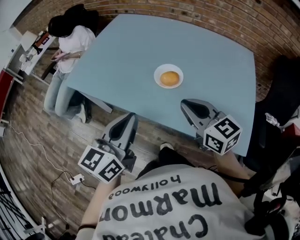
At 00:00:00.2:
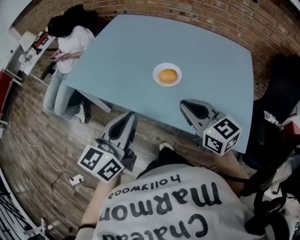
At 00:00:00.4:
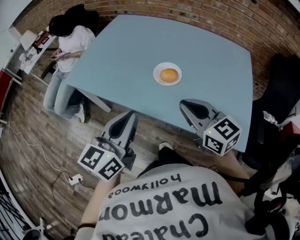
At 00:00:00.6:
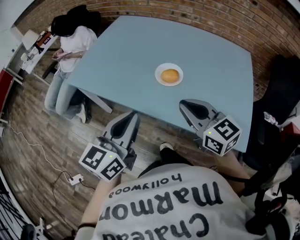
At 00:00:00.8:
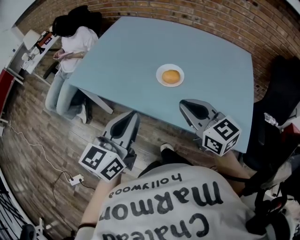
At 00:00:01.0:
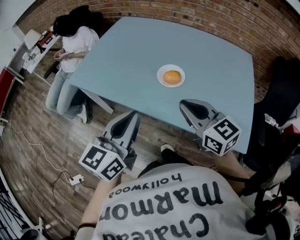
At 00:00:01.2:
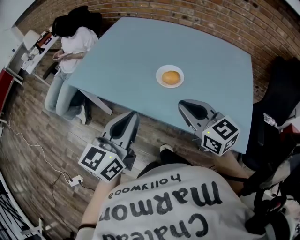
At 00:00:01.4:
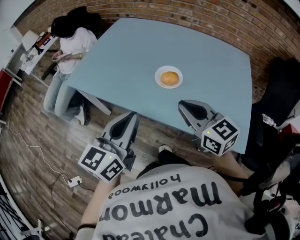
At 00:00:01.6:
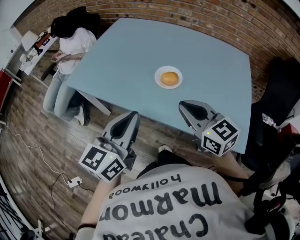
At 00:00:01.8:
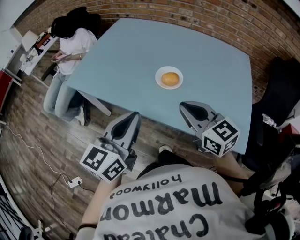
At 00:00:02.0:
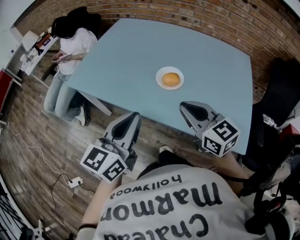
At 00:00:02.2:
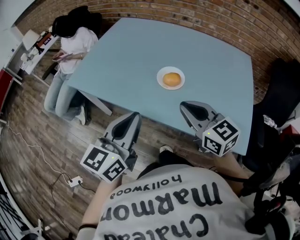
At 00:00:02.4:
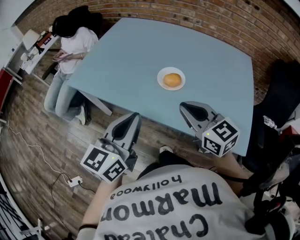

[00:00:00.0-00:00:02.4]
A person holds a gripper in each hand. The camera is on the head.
00:00:00.0 to 00:00:01.2: There are only small adjustments of the grippers.
00:00:01.2 to 00:00:02.4: The two grippers keep their place.

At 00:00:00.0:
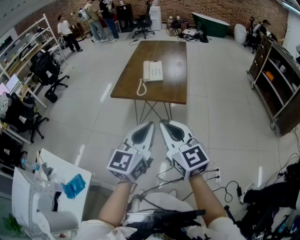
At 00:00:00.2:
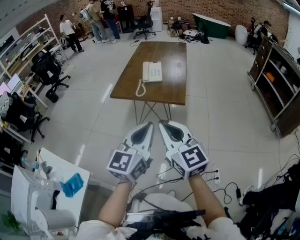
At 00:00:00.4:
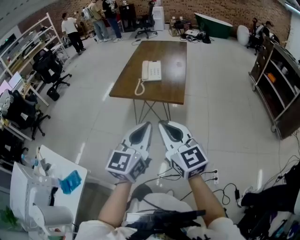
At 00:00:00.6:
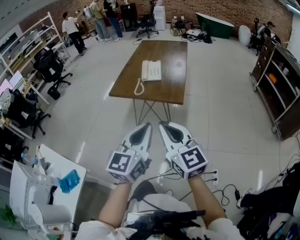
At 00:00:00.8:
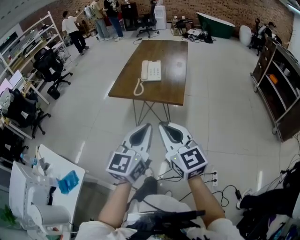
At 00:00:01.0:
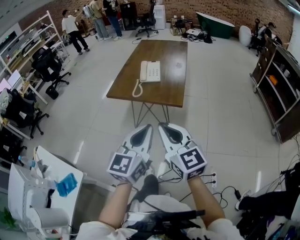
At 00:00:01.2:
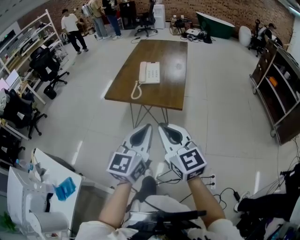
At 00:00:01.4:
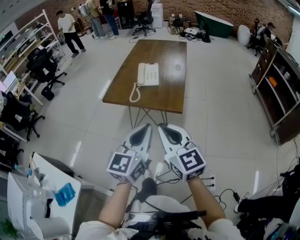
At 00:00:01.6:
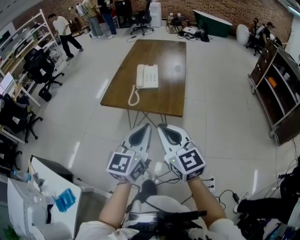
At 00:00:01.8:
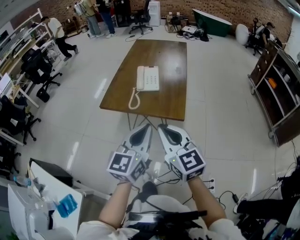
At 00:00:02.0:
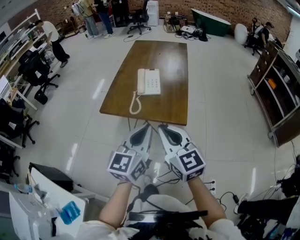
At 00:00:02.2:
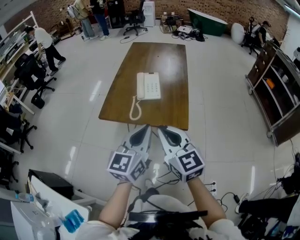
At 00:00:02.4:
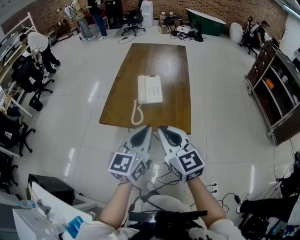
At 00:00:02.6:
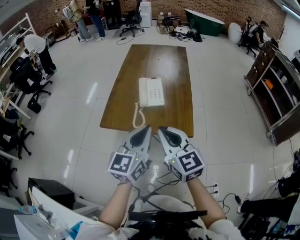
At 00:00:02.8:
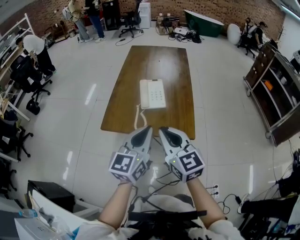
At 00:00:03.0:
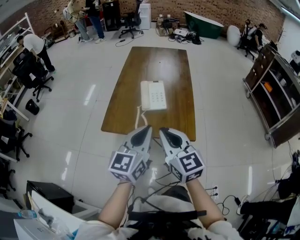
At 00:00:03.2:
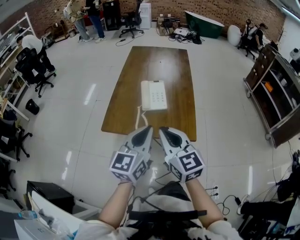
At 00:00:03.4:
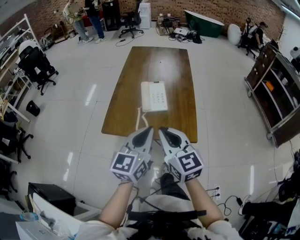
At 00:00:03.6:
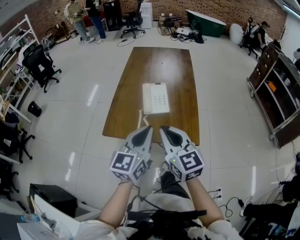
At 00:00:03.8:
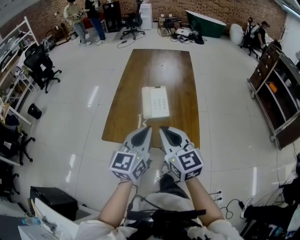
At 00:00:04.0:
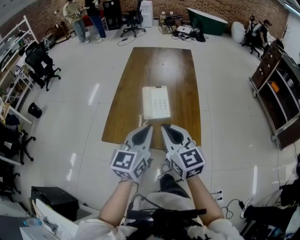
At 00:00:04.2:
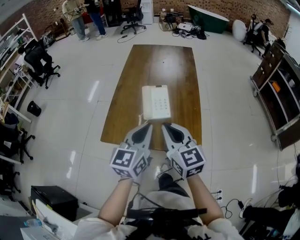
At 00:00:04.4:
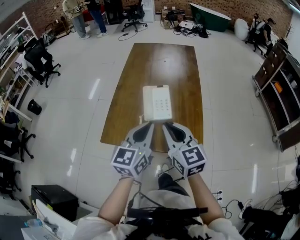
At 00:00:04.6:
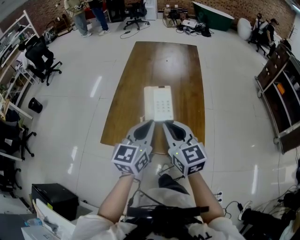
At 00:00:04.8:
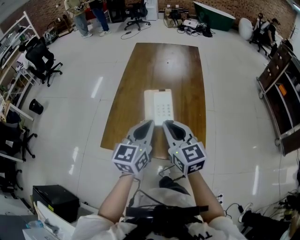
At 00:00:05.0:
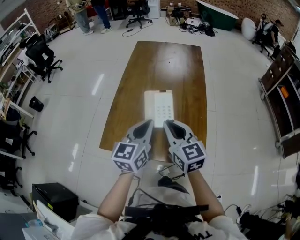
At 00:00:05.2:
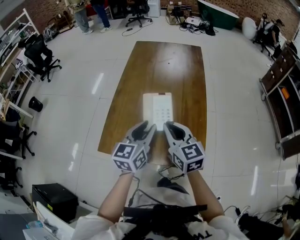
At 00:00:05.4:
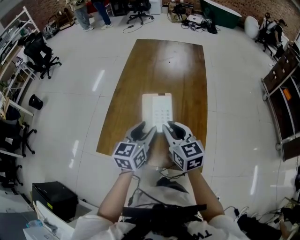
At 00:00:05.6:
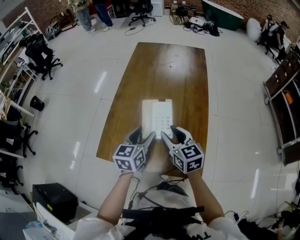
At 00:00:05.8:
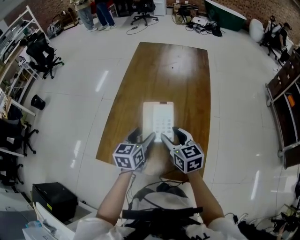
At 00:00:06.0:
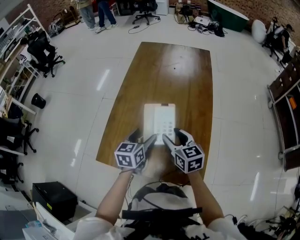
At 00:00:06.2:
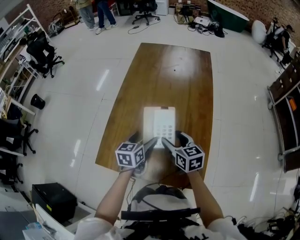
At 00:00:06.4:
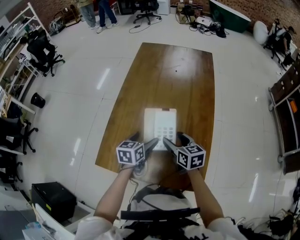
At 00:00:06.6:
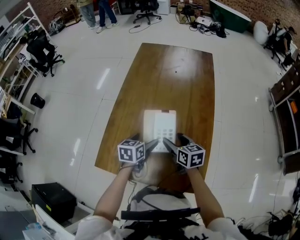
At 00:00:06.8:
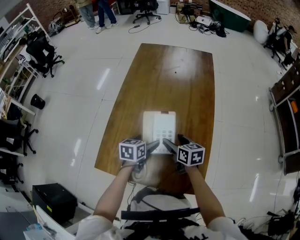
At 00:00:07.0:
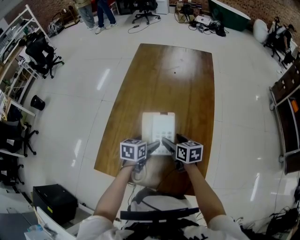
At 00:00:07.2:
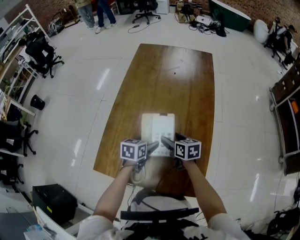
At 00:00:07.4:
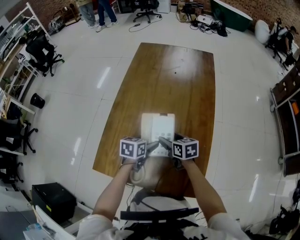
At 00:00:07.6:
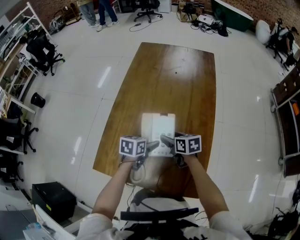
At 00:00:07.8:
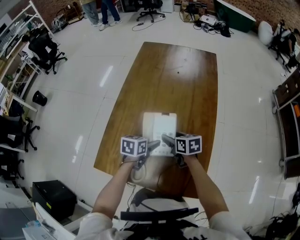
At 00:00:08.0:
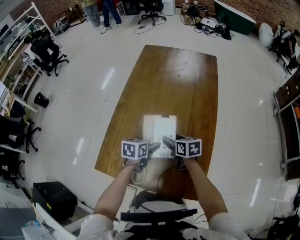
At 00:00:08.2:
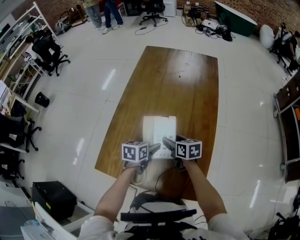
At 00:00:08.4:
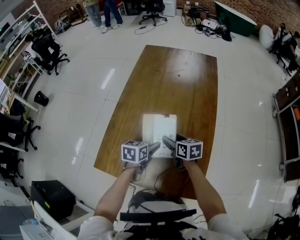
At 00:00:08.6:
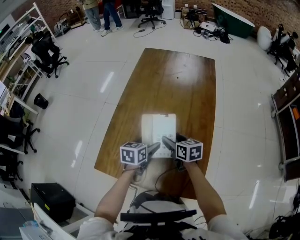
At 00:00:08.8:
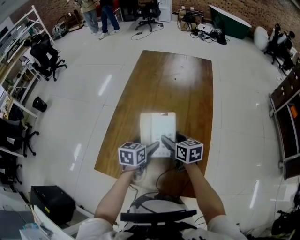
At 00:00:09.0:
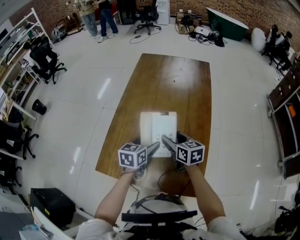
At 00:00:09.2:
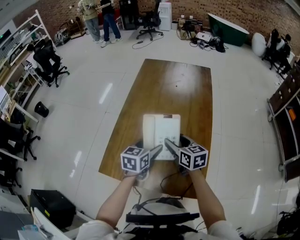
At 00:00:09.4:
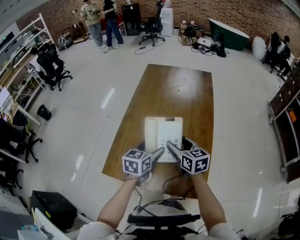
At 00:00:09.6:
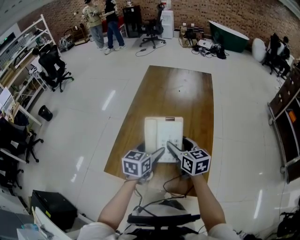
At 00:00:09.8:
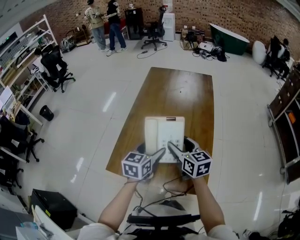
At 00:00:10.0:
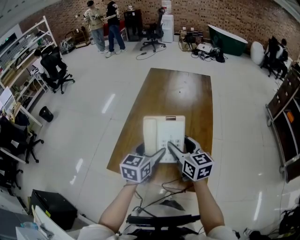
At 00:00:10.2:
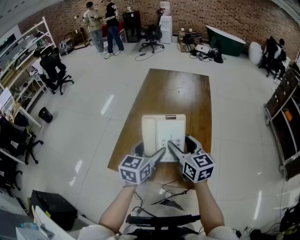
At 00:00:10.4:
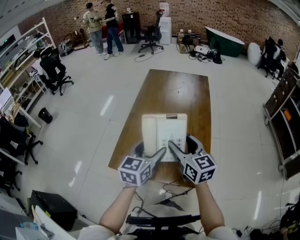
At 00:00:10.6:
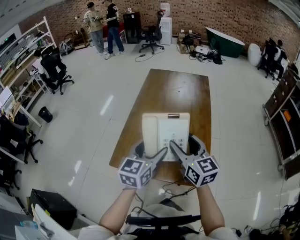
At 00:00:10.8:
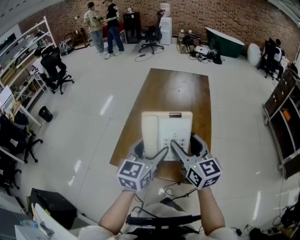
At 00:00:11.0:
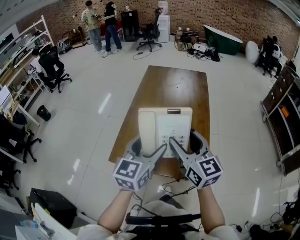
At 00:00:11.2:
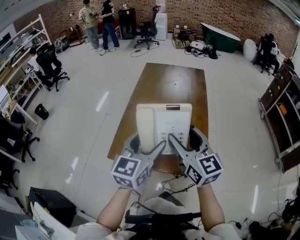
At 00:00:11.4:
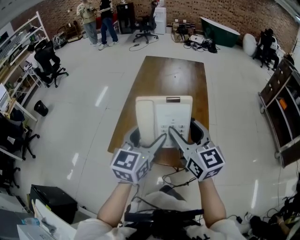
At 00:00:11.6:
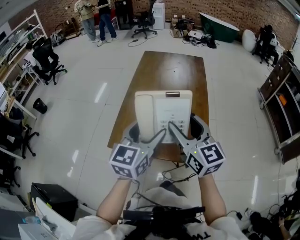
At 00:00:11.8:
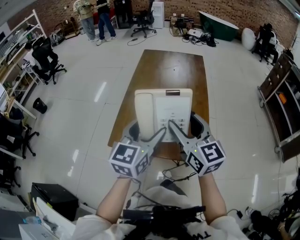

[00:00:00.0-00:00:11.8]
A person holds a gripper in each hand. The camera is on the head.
00:00:00.0 to 00:00:01.4: Both grippers move forward, some 10 cm.
00:00:01.4 to 00:00:03.0: The grippers both shift forward by some 20 cm.
00:00:03.0 to 00:00:04.4: The two grippers go some 10 cm forward.
00:00:04.4 to 00:00:06.0: The two grippers go some 20 cm forward and downward. The left gripper changes its angle by about 20 degrees, and opens up; the right gripper opens.
00:00:06.0 to 00:00:07.4: The left gripper is displaced downward by about 10 cm, and swivels approximately 20 degrees. Meanwhile the right gripper shifts approximately 10 cm downward and forward, and changes its angle by roughly 20 degrees.
00:00:07.4 to 00:00:08.8: Both grippers travel together upward, about 5 cm.
00:00:08.8 to 00:00:10.4: Both grippers travel together upward and backward, roughly 20 cm. The left gripper changes its angle by roughly 20 degrees; the right gripper swivels about 30 degrees.
00:00:10.4 to 00:00:11.8: Both grippers travel together backward and upward, approximately 10 cm.

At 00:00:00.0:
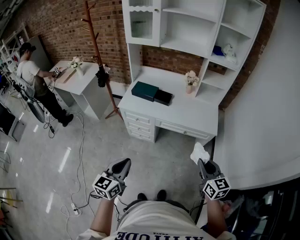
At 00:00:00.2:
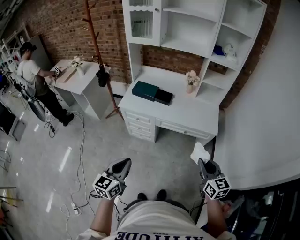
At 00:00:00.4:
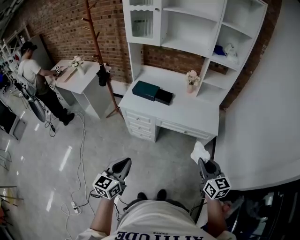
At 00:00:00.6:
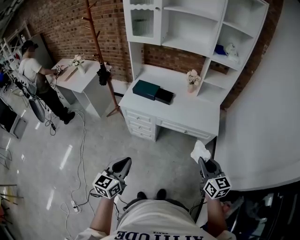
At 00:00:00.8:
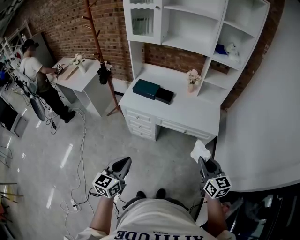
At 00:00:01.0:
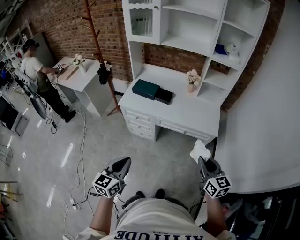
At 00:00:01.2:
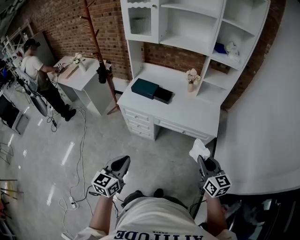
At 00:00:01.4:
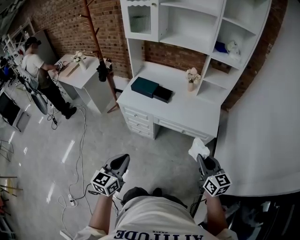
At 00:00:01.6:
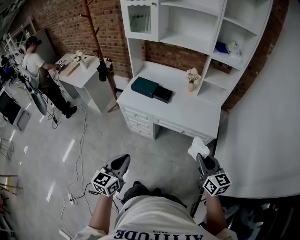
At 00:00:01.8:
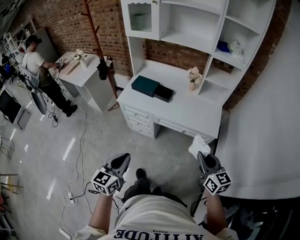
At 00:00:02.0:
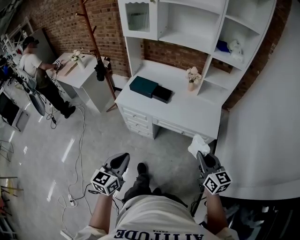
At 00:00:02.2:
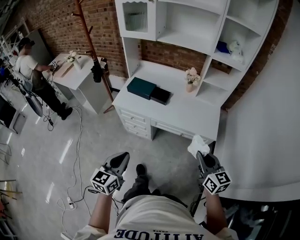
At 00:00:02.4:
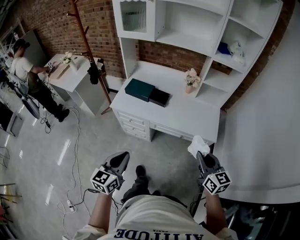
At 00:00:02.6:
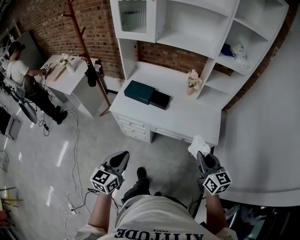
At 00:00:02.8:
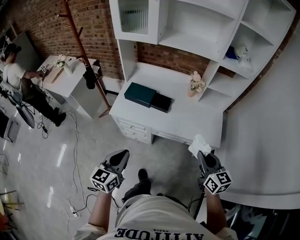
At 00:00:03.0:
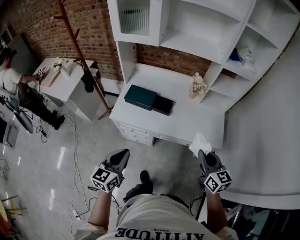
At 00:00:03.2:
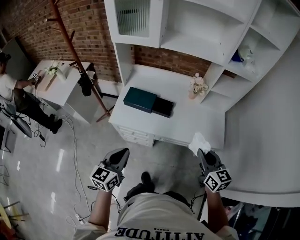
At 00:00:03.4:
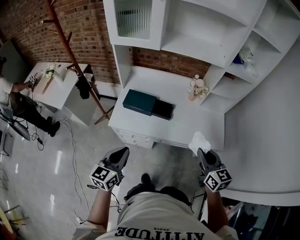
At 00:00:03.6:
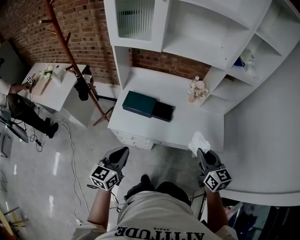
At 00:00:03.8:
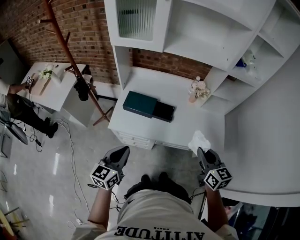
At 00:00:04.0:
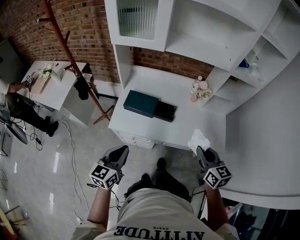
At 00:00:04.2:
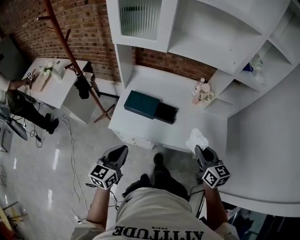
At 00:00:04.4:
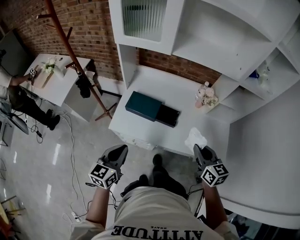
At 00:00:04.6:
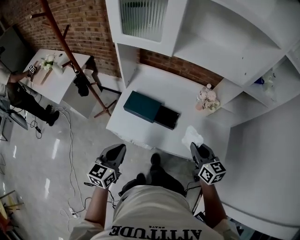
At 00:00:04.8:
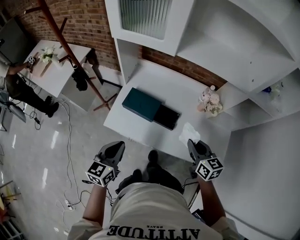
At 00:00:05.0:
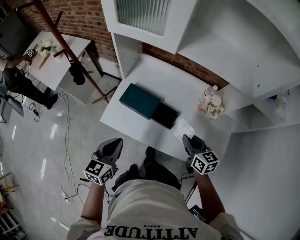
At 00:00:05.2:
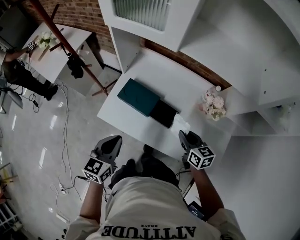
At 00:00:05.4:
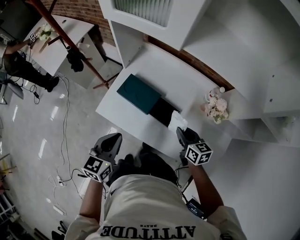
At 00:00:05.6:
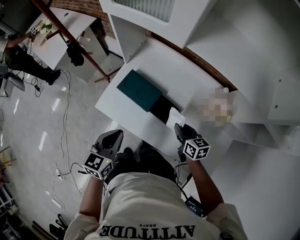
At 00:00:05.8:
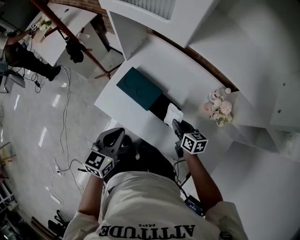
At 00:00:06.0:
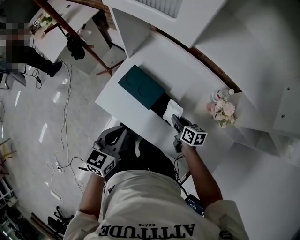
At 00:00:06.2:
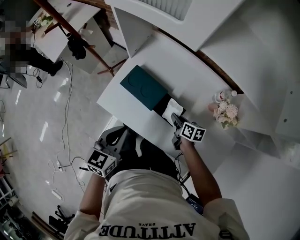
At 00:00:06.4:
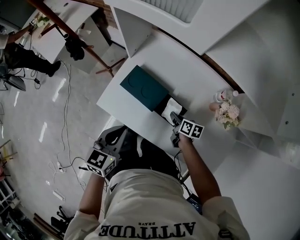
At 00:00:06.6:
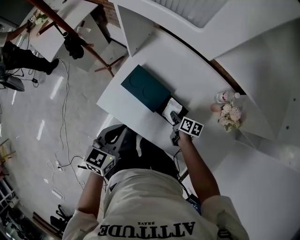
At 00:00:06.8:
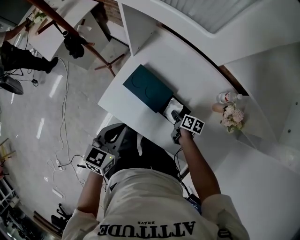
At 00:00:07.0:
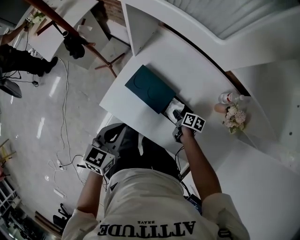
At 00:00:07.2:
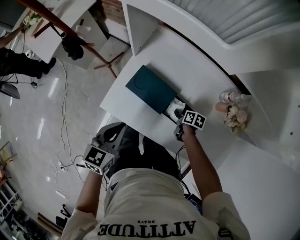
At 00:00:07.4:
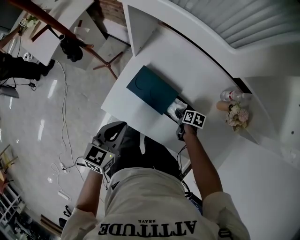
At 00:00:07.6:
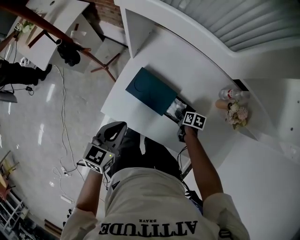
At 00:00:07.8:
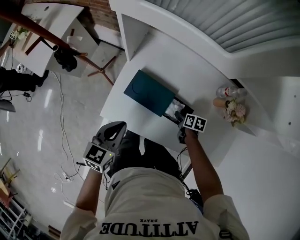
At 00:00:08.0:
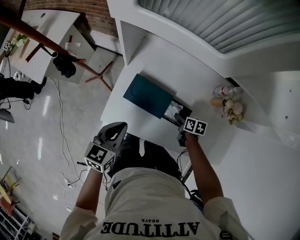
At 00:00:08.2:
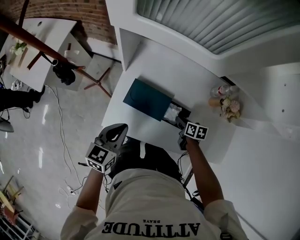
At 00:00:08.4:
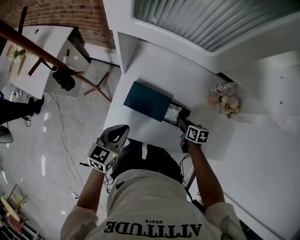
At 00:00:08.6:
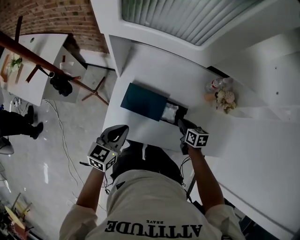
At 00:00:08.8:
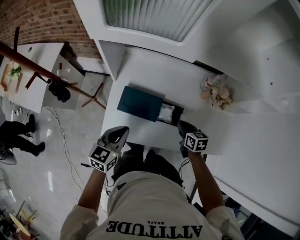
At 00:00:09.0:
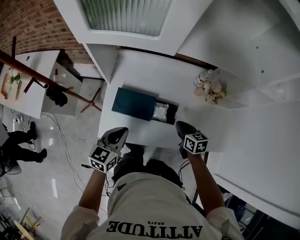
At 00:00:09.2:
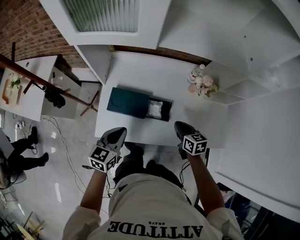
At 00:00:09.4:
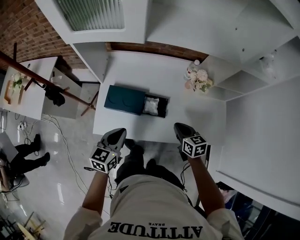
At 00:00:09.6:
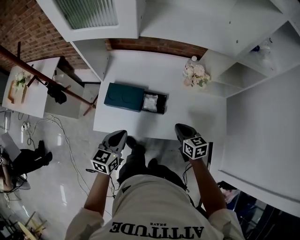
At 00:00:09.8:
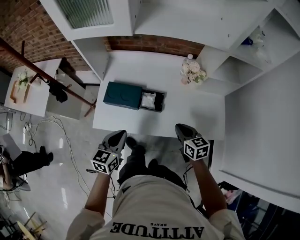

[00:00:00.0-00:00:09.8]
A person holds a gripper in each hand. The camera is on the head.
00:00:00.0 to 00:00:01.4: The left gripper travels to the right by about 5 cm; the right gripper moves some 5 cm.
00:00:01.4 to 00:00:02.8: Both grippers travel together forward, roughly 20 cm.
00:00:02.8 to 00:00:04.2: Both grippers move forward and to the left, roughly 20 cm.
00:00:04.2 to 00:00:05.6: The right gripper heads forward and downward, covering some 30 cm, and rotates roughly 30 degrees. The left gripper travels forward, to the right and downward by approximately 15 cm.
00:00:05.6 to 00:00:07.0: The left gripper is displaced forward by about 5 cm. Meanwhile the right gripper goes some 20 cm downward, and changes its angle by about 40 degrees.
00:00:07.0 to 00:00:08.4: The left gripper goes approximately 5 cm forward. The right gripper moves upward, some 10 cm, and opens and closes again.
00:00:08.4 to 00:00:09.8: The left gripper heads to the right and backward, covering roughly 20 cm. Meanwhile the right gripper shifts roughly 25 cm backward, upward and to the right, and rotates approximately 30 degrees.
